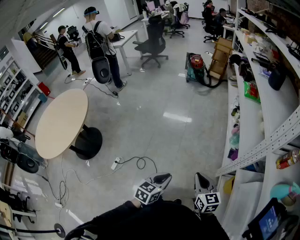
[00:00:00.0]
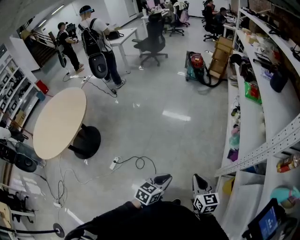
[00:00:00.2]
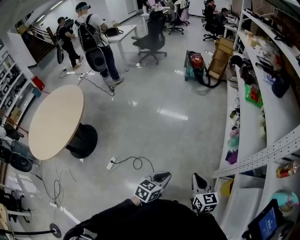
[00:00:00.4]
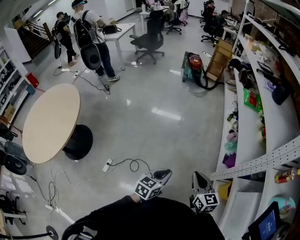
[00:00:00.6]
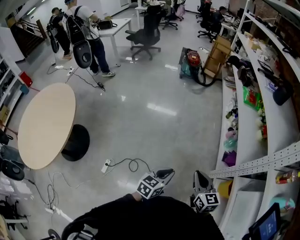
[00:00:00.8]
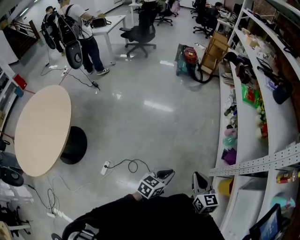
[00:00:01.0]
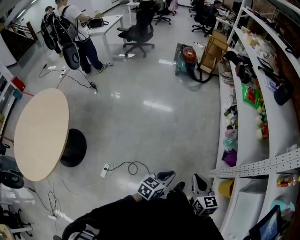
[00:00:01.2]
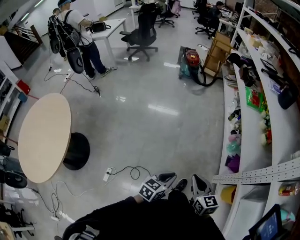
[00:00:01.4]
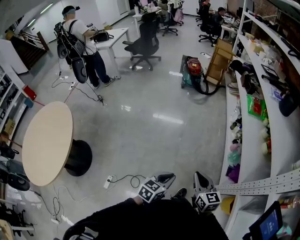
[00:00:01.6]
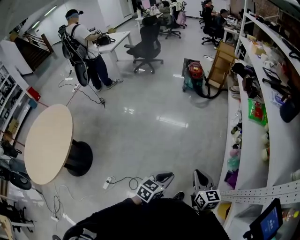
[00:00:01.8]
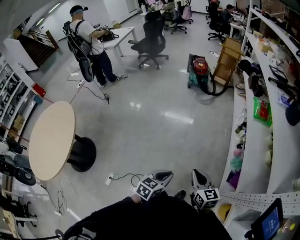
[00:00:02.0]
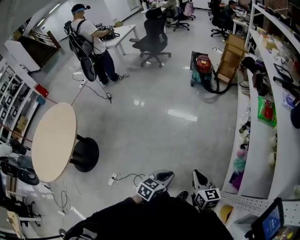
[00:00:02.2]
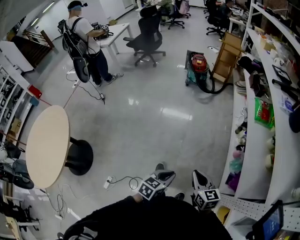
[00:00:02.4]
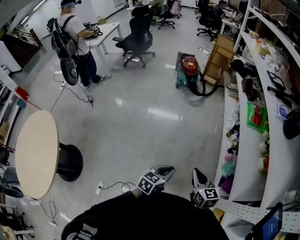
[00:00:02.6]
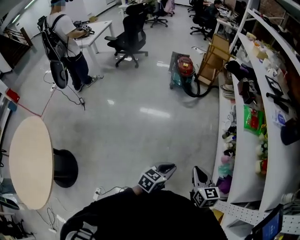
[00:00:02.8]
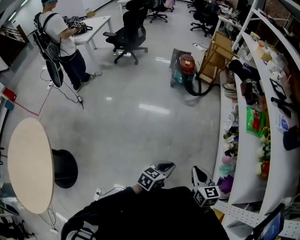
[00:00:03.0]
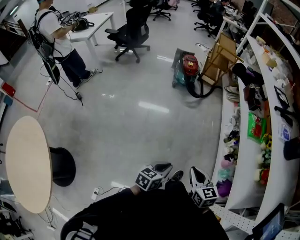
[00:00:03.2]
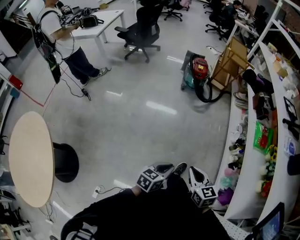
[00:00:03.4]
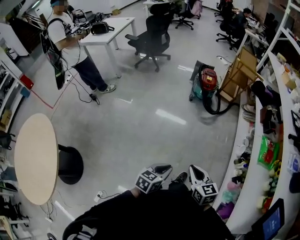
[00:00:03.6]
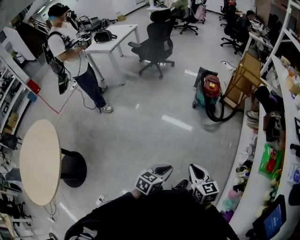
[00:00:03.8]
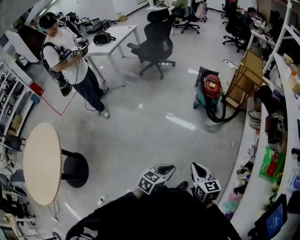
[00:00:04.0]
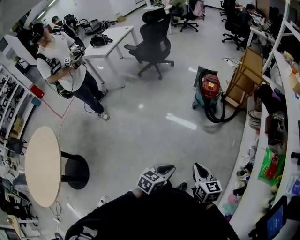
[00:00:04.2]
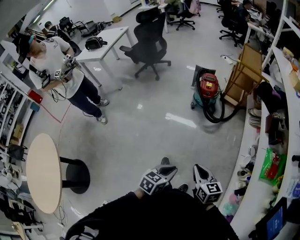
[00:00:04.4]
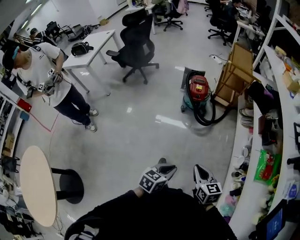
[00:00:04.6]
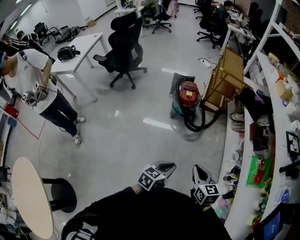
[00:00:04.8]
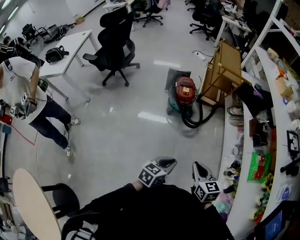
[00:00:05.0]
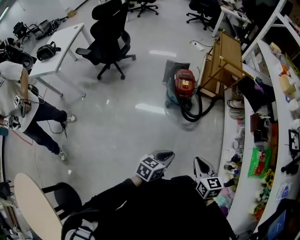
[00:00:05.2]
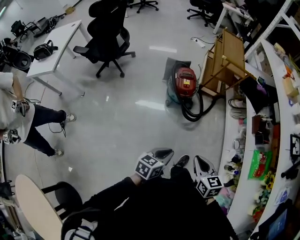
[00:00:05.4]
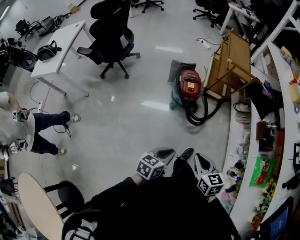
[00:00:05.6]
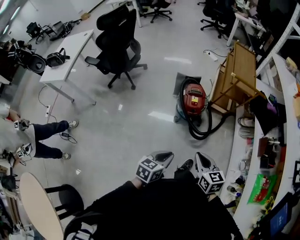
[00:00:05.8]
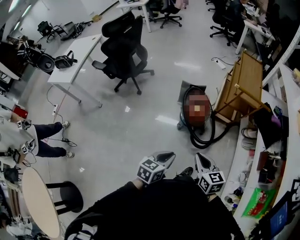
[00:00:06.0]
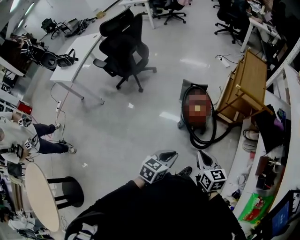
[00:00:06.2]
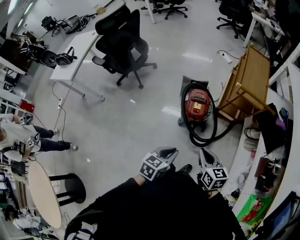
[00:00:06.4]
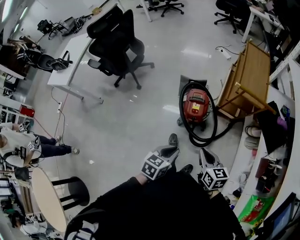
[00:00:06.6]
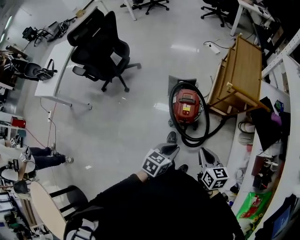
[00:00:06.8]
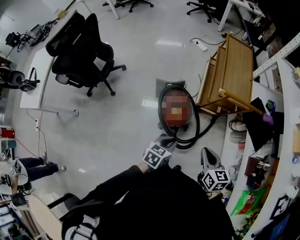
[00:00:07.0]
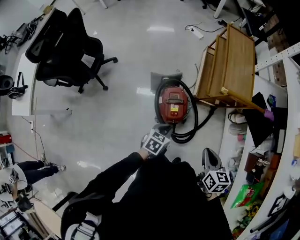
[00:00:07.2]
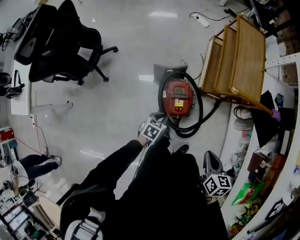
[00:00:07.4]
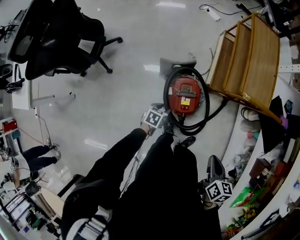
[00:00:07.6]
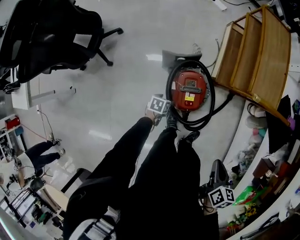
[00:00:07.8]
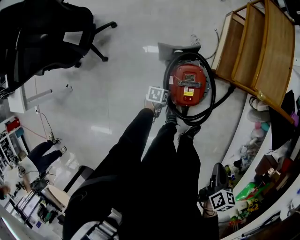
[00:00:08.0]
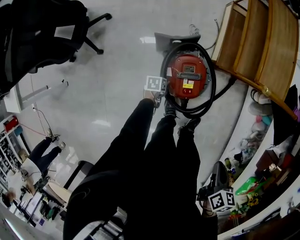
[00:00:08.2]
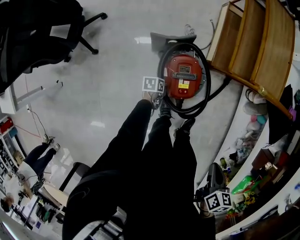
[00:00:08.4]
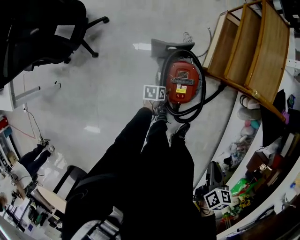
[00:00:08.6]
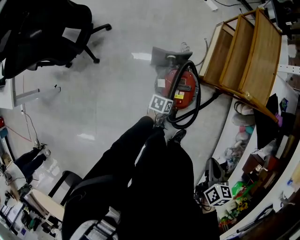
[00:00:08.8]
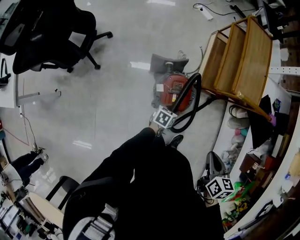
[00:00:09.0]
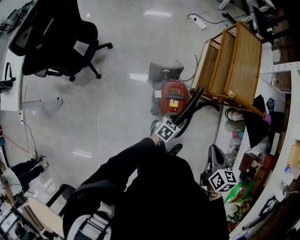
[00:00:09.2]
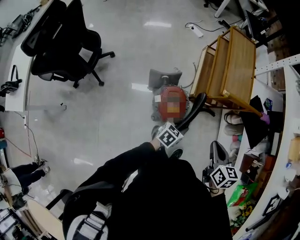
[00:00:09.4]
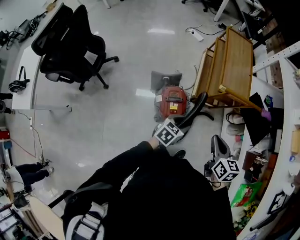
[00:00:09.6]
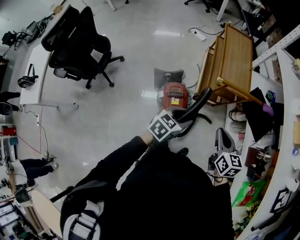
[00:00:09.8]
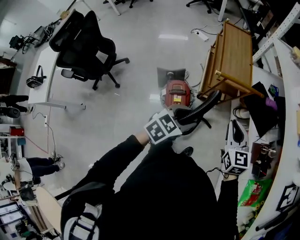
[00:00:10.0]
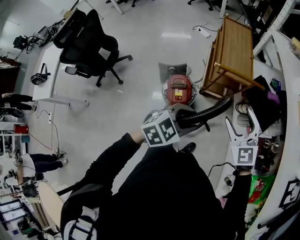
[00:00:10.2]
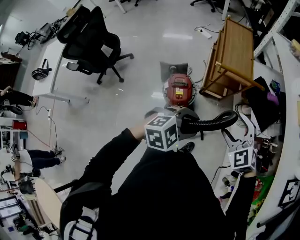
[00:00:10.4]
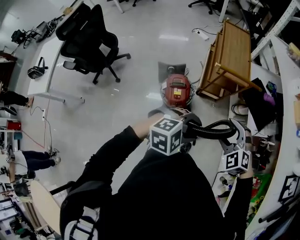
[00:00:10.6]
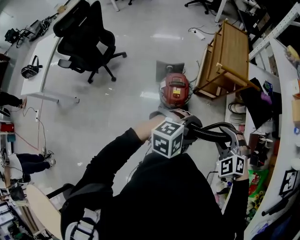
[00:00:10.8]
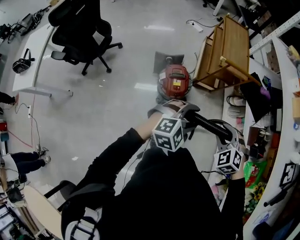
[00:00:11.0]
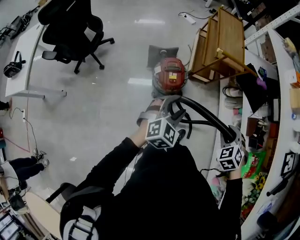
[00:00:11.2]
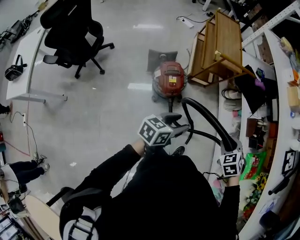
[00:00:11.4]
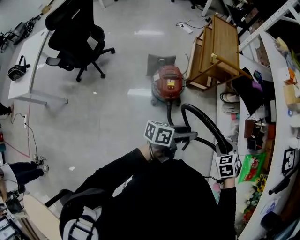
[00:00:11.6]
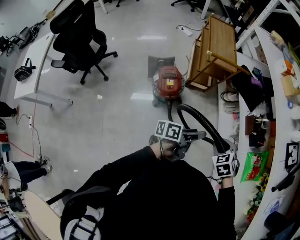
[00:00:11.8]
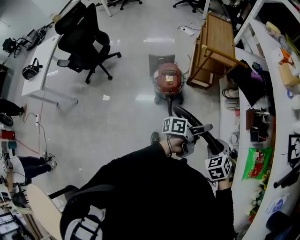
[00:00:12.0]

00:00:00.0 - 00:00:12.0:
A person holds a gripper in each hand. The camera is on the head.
00:00:00.0 - 00:00:01.6: Both grippers travel together forward and to the left, roughly 30 cm.
00:00:01.6 - 00:00:03.0: The two grippers go some 35 cm forward.
00:00:03.0 - 00:00:04.4: The two grippers go roughly 35 cm forward.
00:00:04.4 - 00:00:06.0: The pair of grippers is taken forward, approximately 50 cm.
00:00:06.0 - 00:00:07.6: The left gripper heads forward and downward, covering about 60 cm, and swivels roughly 30 degrees, while the right gripper shifts approximately 35 cm forward, and swivels some 40 degrees.
00:00:07.6 - 00:00:09.0: The left gripper shifts roughly 10 cm to the right, reaches some 20 cm downward, then returns, and opens, then closes once more.
00:00:09.0 - 00:00:10.4: The right gripper travels to the right and upward by approximately 25 cm, twists roughly 70 degrees counterclockwise, seen from behind, and opens its fingers. The left gripper goes approximately 50 cm upward, to the right and backward, and rolls clockwise, seen from behind, by roughly 70 degrees.
00:00:10.4 - 00:00:12.0: The left gripper heads to the right, backward and downward, covering approximately 20 cm, rolls counterclockwise, seen from behind, by approximately 100 degrees, and opens up; the right gripper travels backward and to the right by approximately 30 cm, turns by approximately 40 degrees, and closes up.

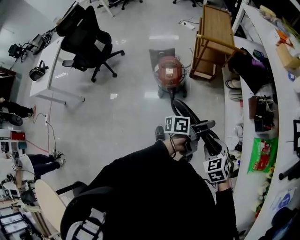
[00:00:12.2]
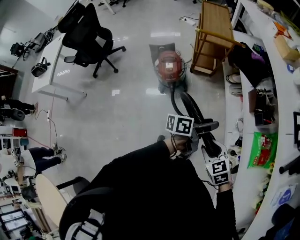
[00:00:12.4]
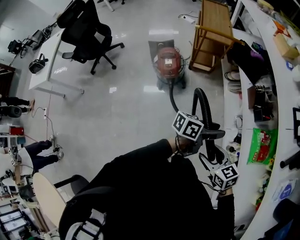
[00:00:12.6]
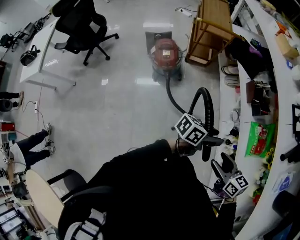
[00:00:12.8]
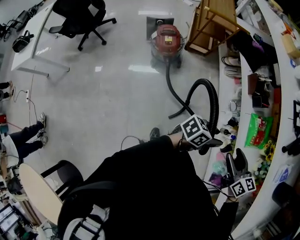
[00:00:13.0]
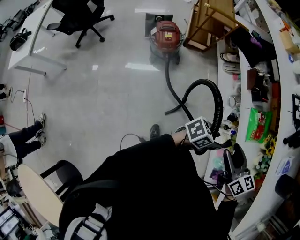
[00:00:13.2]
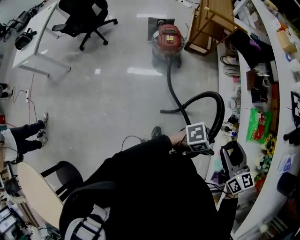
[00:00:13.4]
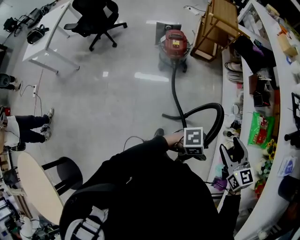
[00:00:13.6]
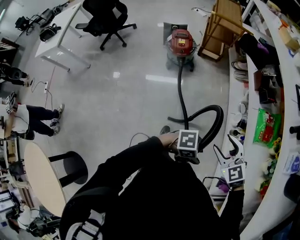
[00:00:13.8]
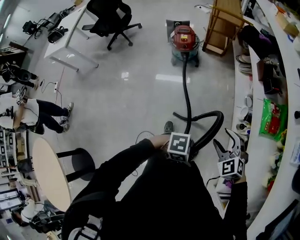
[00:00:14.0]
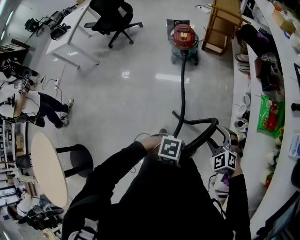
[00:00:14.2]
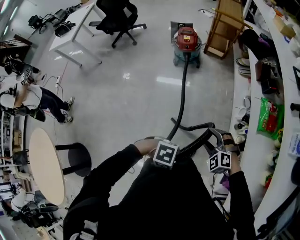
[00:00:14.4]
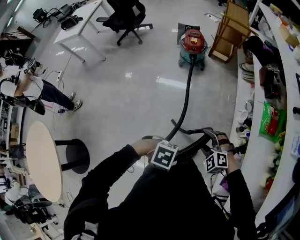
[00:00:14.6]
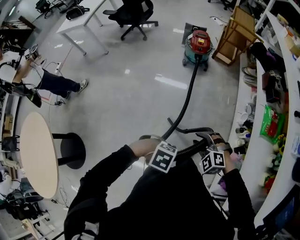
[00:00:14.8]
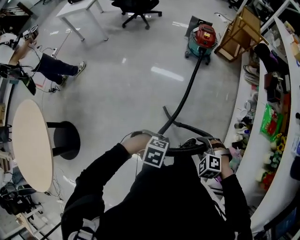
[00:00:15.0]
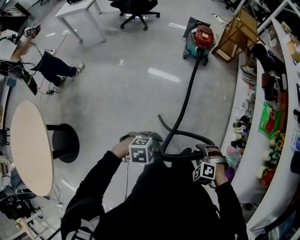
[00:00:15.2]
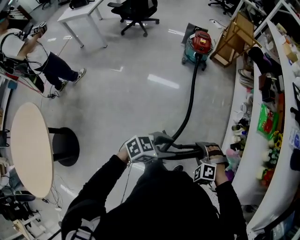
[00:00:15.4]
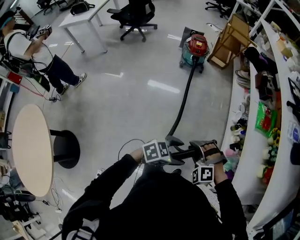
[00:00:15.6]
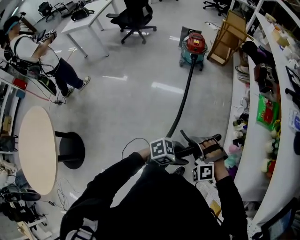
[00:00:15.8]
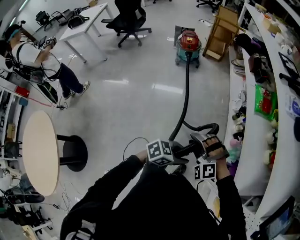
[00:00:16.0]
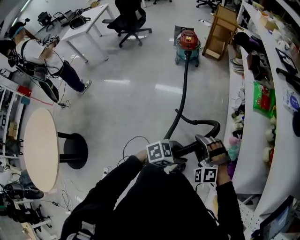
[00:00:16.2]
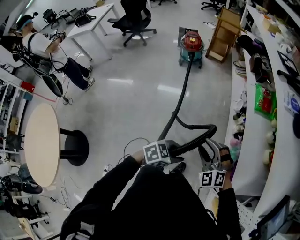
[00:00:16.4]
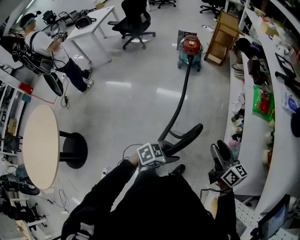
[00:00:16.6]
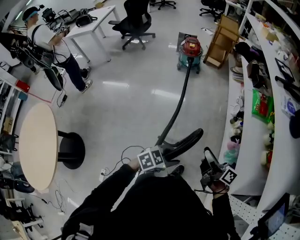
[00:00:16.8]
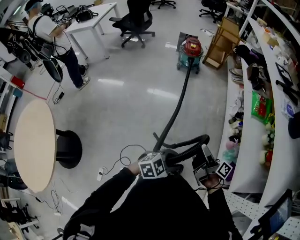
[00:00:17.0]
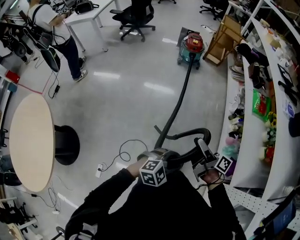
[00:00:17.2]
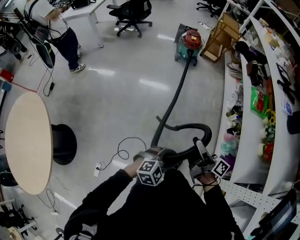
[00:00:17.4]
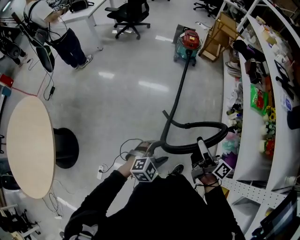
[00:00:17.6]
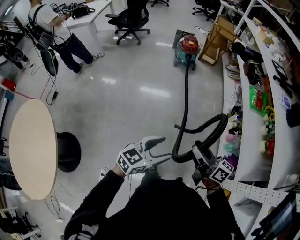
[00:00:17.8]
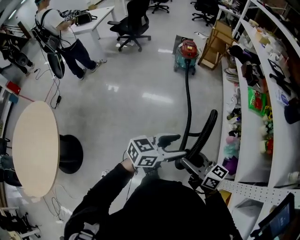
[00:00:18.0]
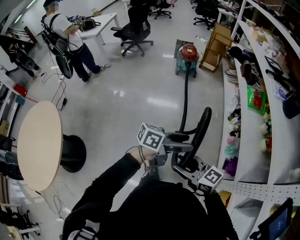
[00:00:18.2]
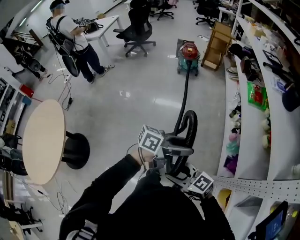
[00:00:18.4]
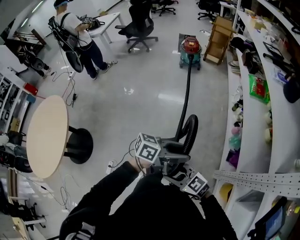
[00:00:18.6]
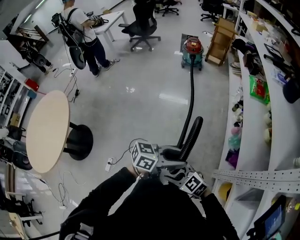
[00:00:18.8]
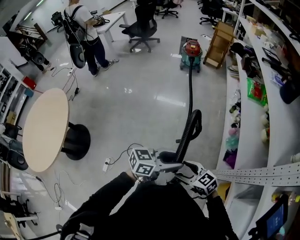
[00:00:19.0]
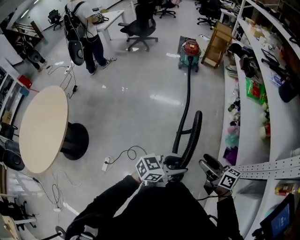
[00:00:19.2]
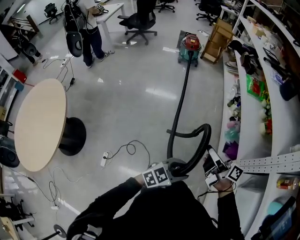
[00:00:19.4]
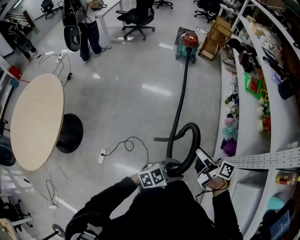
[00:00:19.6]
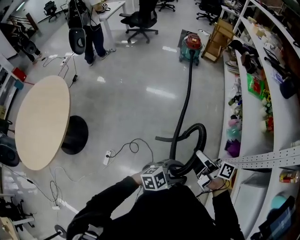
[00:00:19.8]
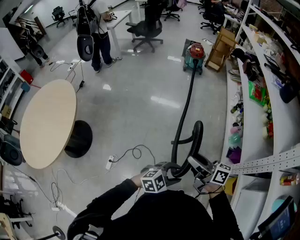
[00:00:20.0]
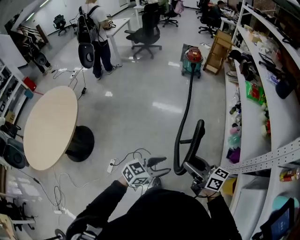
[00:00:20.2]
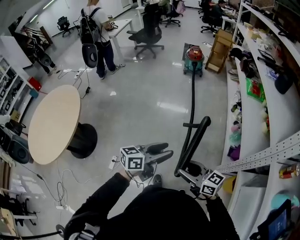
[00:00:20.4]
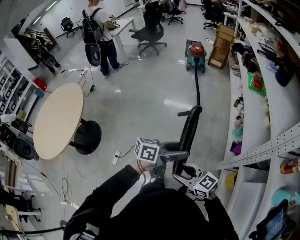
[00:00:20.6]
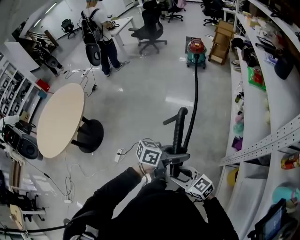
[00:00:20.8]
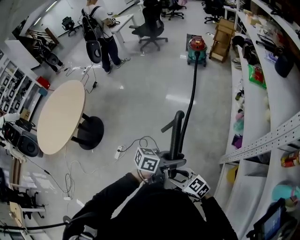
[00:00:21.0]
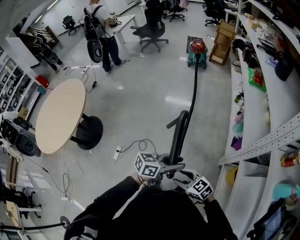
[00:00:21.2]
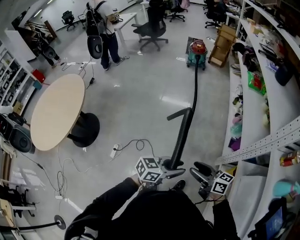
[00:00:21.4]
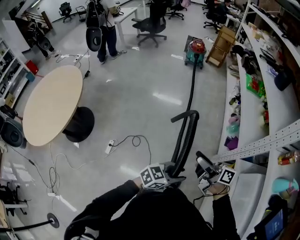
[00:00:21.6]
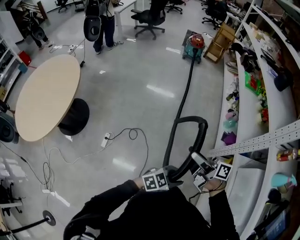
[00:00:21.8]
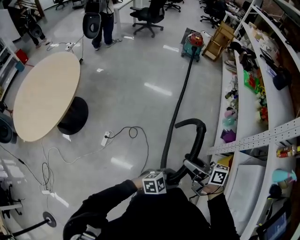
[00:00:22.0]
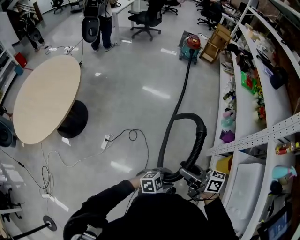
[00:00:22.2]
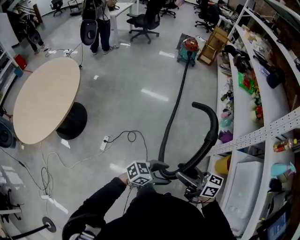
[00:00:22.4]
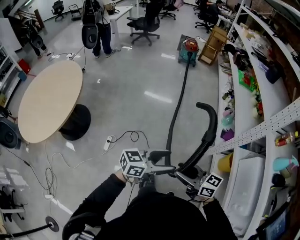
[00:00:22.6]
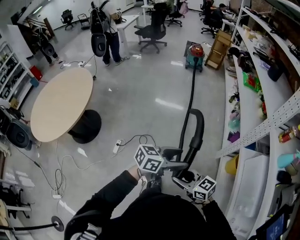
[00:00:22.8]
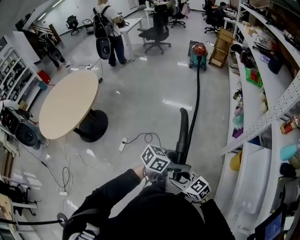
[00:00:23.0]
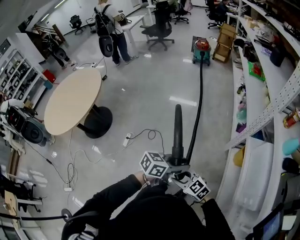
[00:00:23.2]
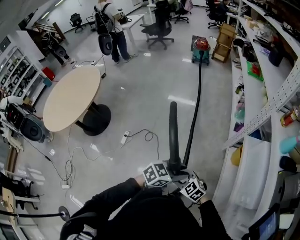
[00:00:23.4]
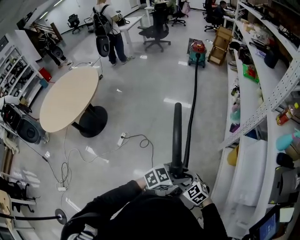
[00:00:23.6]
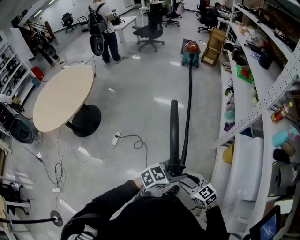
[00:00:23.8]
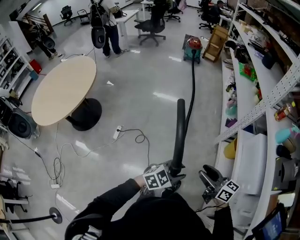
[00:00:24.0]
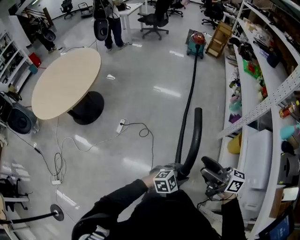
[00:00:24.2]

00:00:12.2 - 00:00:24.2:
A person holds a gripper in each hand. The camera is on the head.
00:00:12.2 - 00:00:13.8: The left gripper ends up some 50 cm from where it was, and rotates about 80 degrees, while the right gripper changes place by approximately 30 cm, turns by approximately 20 degrees, and opens its fingers.
00:00:13.8 - 00:00:15.2: The left gripper shifts by roughly 40 cm, and rotates about 40 degrees. Meanwhile the right gripper changes place by approximately 40 cm, rolls counterclockwise, seen from behind, by about 50 degrees, and closes its fingers.
00:00:15.2 - 00:00:16.6: The left gripper shifts by approximately 30 cm, changes its angle by roughly 20 degrees, and opens, then closes once more. The right gripper shifts by some 30 cm, and tips its fingers upward by approximately 60 degrees.
00:00:16.6 - 00:00:18.2: The right gripper changes place by some 35 cm, rotates some 30 degrees, and opens and closes again. Meanwhile the left gripper travels upward by some 15 cm, angles its fingers upward, by approximately 40 degrees, and opens.
00:00:18.2 - 00:00:19.8: The left gripper changes place by about 40 cm, rolls clockwise, seen from behind, by roughly 50 degrees, and closes its fingers. The right gripper reaches roughly 10 cm downward, then returns, and rolls clockwise, seen from behind, by roughly 50 degrees.
00:00:19.8 - 00:00:21.2: The left gripper shifts by approximately 15 cm, twists about 40 degrees counterclockwise, seen from behind, and opens and closes again. The right gripper shifts by roughly 30 cm, and rolls counterclockwise, seen from behind, by roughly 50 degrees.
00:00:21.2 - 00:00:22.6: The right gripper ends up approximately 20 cm from where it was, swivels roughly 30 degrees, and opens and closes again, while the left gripper reaches roughly 10 cm downward, then returns, and opens its fingers.
00:00:22.6 - 00:00:24.2: The right gripper travels downward and back again, roughly 15 cm each way, and rotates about 20 degrees, while the left gripper moves roughly 35 cm, tilts its fingers roughly 30 degrees downward, and closes up.
